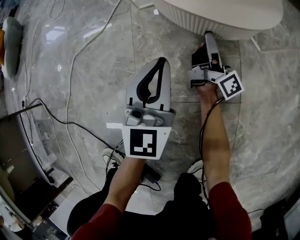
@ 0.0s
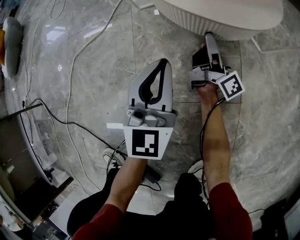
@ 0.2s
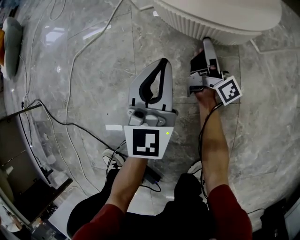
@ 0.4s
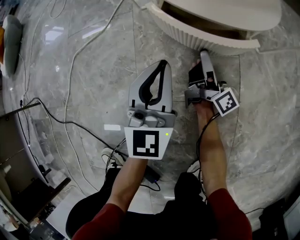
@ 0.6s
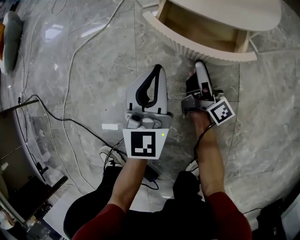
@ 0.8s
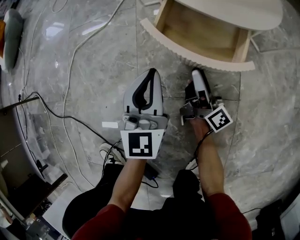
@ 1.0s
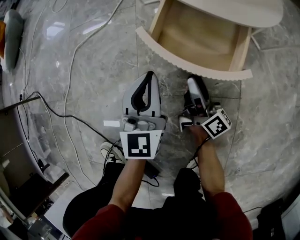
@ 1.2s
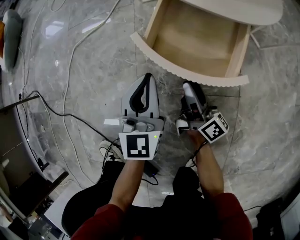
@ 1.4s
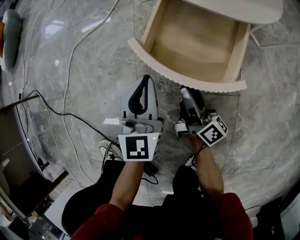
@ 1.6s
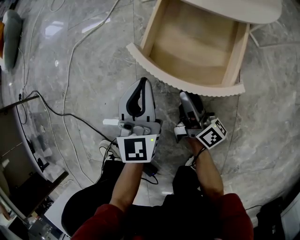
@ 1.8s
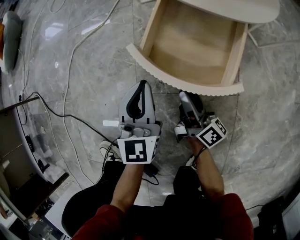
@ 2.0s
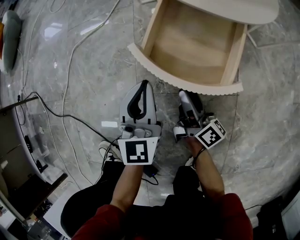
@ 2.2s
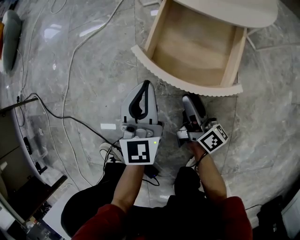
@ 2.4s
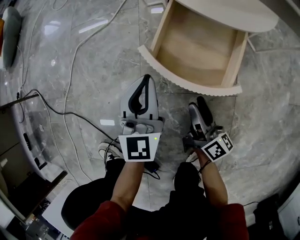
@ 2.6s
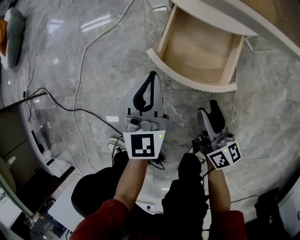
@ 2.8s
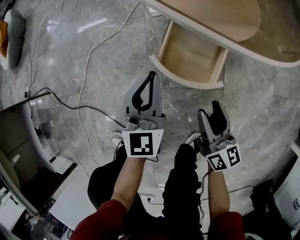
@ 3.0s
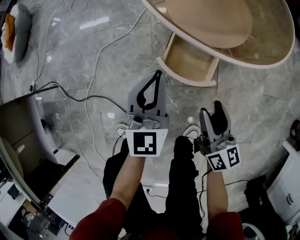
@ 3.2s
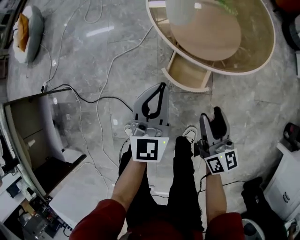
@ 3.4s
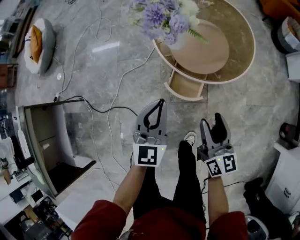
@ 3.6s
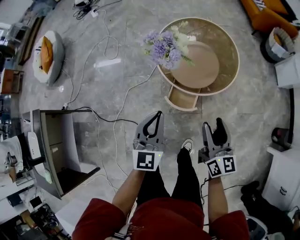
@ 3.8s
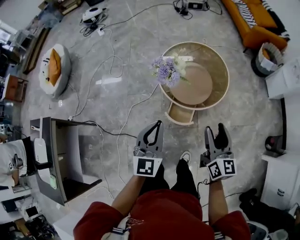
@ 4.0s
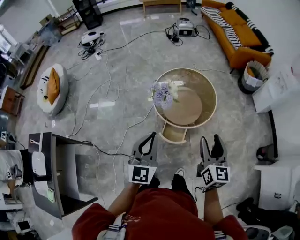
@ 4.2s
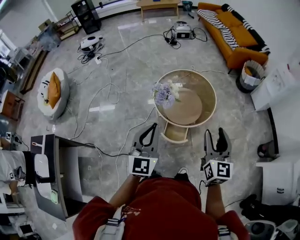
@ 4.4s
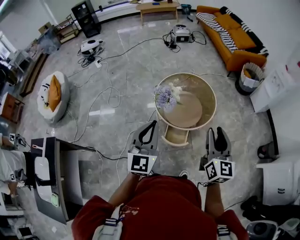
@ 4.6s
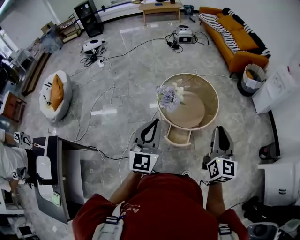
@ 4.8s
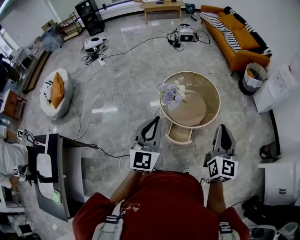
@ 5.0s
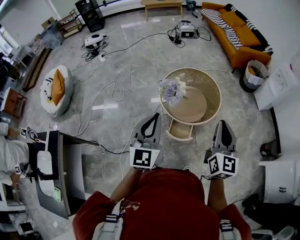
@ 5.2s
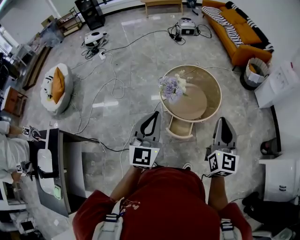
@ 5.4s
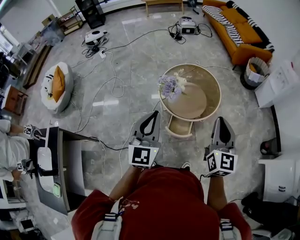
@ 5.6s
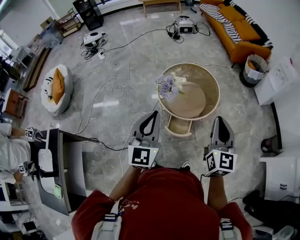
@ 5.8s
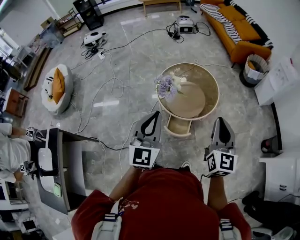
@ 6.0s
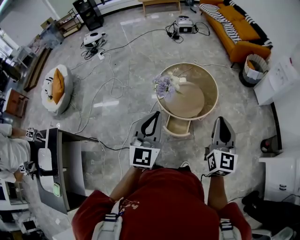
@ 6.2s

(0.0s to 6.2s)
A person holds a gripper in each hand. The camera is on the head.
0.0s - 1.6s: The left gripper is displaced backward and to the left by approximately 10 cm; the right gripper shifts about 20 cm backward and to the left.
1.6s - 3.2s: Both grippers move upward, about 30 cm. The right gripper changes its angle by about 40 degrees.
3.2s - 4.6s: The grippers both shift upward by roughly 60 cm. The right gripper changes its angle by about 30 degrees.
4.6s - 6.2s: The right gripper closes.

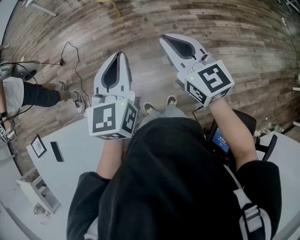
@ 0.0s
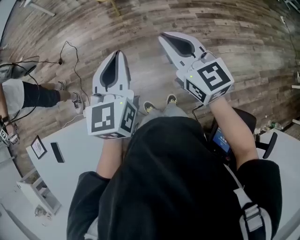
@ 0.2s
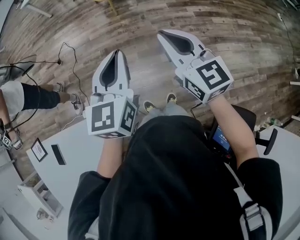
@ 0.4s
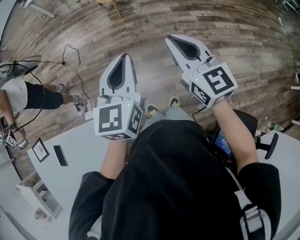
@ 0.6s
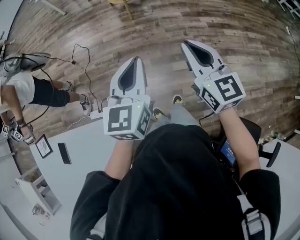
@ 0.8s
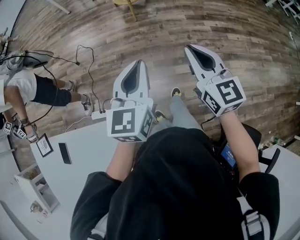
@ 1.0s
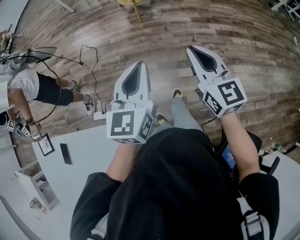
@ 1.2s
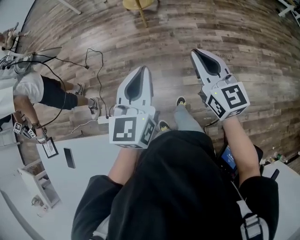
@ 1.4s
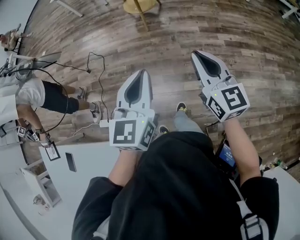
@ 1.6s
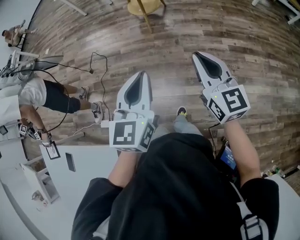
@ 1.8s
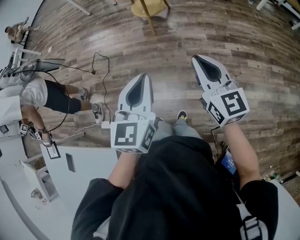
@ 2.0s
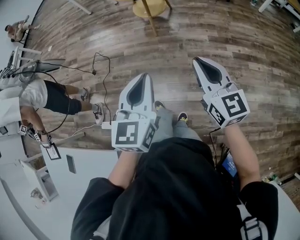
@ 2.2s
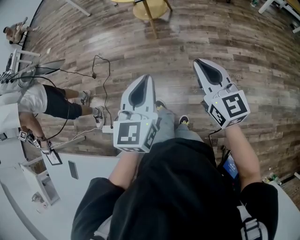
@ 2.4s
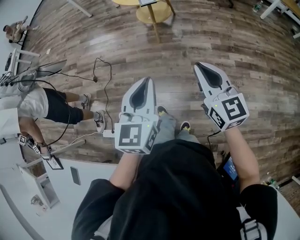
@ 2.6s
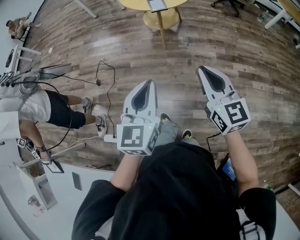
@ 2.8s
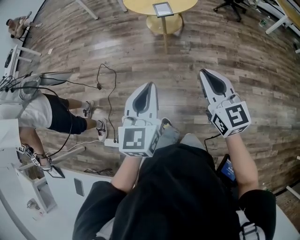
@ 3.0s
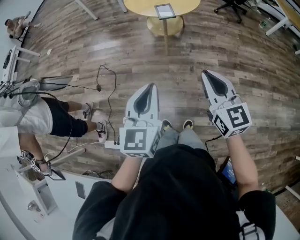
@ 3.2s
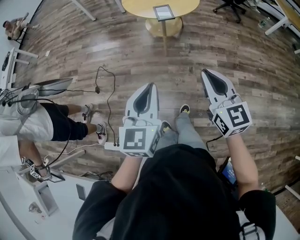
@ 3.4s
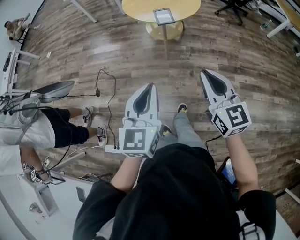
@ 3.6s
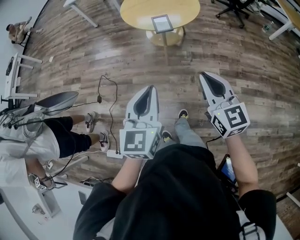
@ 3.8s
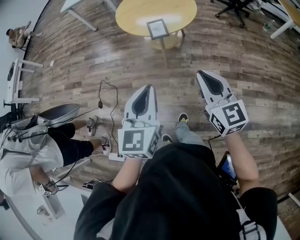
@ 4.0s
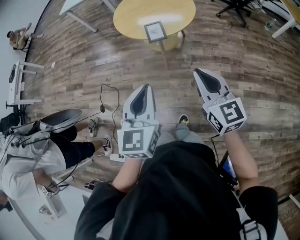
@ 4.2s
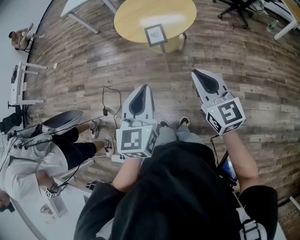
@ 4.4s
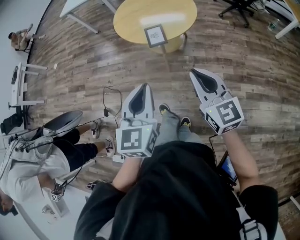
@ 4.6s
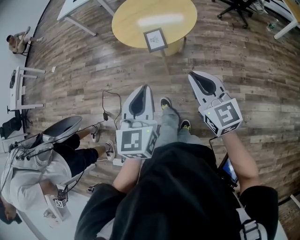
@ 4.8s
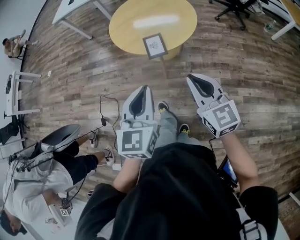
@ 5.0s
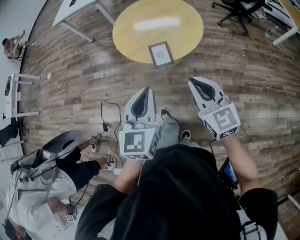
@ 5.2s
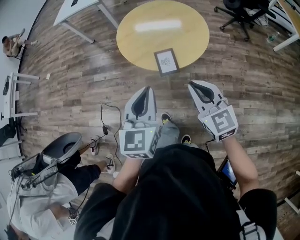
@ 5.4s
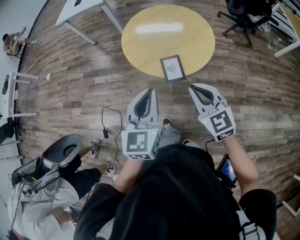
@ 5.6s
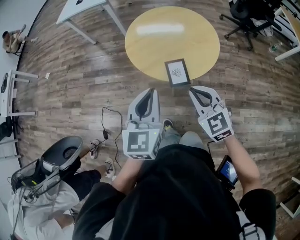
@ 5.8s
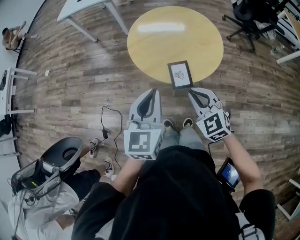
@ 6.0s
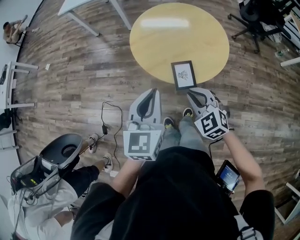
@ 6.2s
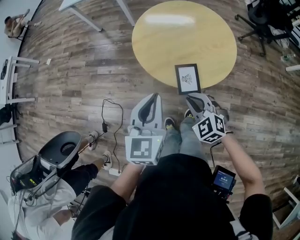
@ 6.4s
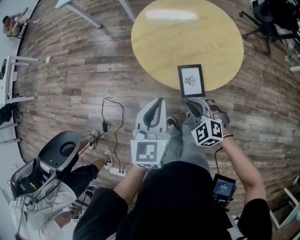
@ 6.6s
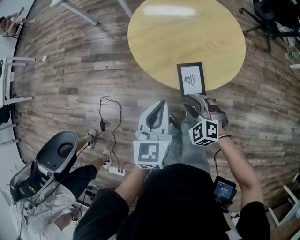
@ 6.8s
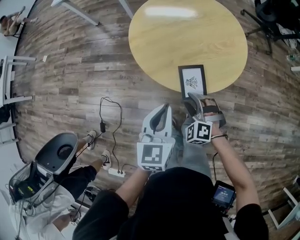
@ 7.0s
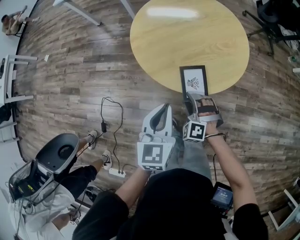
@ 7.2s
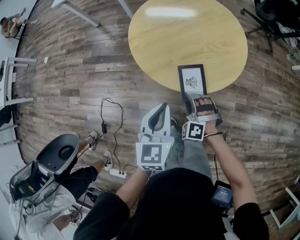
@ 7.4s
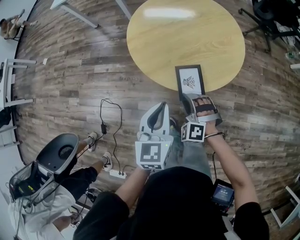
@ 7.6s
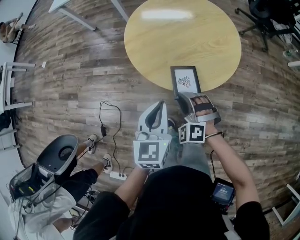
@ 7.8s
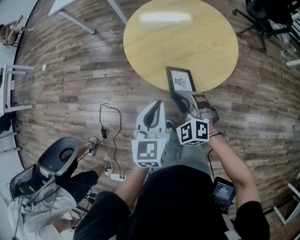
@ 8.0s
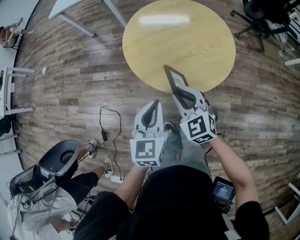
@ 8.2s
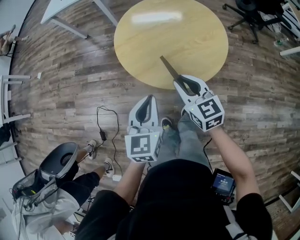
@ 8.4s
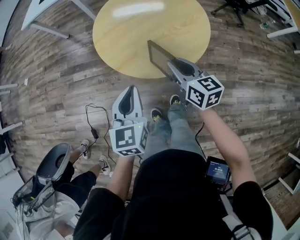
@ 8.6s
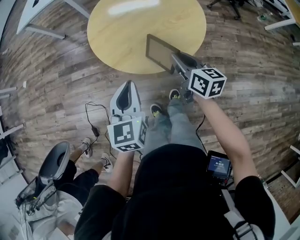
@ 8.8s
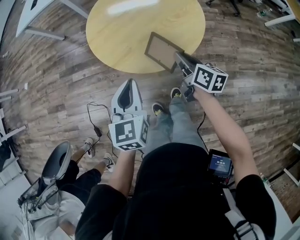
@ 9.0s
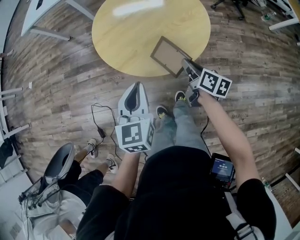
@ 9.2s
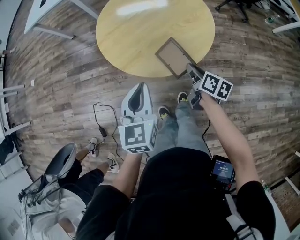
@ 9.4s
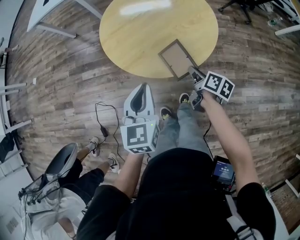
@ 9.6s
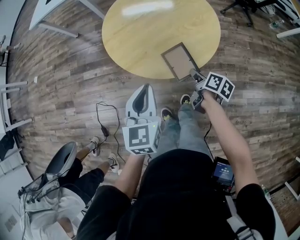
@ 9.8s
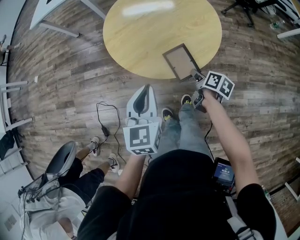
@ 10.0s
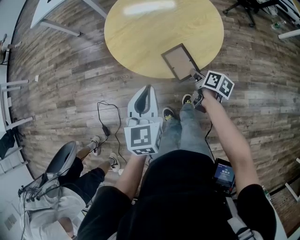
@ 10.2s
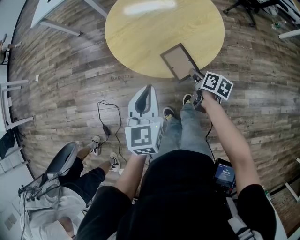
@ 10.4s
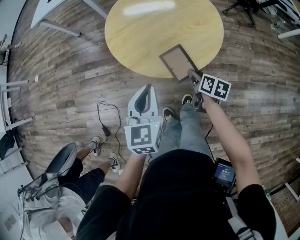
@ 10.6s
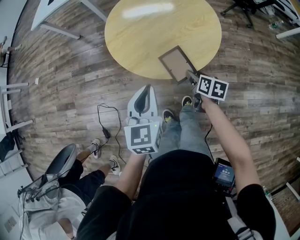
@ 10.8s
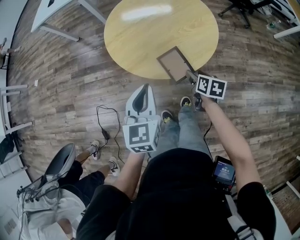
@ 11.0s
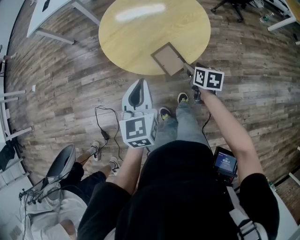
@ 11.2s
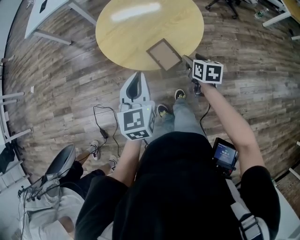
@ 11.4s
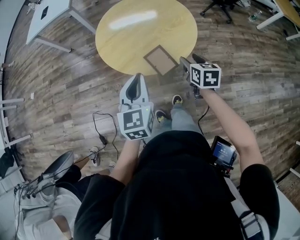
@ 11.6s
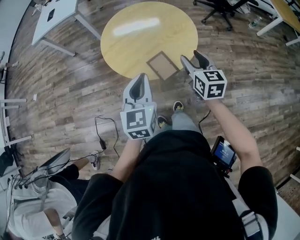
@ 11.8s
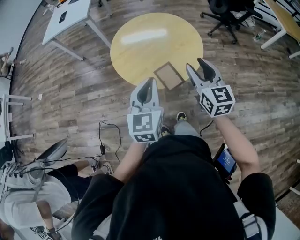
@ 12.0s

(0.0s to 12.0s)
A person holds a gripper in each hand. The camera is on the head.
0.0s - 1.6s: Both grippers move forward, approximately 15 cm.
1.6s - 3.0s: The left gripper moves forward and to the left, some 30 cm, while the right gripper goes some 25 cm forward.
3.0s - 4.4s: Both grippers travel together forward and to the right, approximately 25 cm.
4.4s - 6.0s: The left gripper is displaced forward by about 30 cm. Meanwhile the right gripper is displaced forward and to the left by about 30 cm, and turns by roughly 40 degrees.
6.0s - 7.6s: The grippers both shift downward by some 20 cm. The right gripper changes its angle by approximately 40 degrees, and opens its fingers.
7.6s - 9.0s: The right gripper is displaced to the right, upward and forward by roughly 20 cm, and rolls clockwise, seen from behind, by some 110 degrees.
9.0s - 10.4s: The right gripper travels downward by approximately 10 cm, and rotates some 20 degrees.
10.4s - 12.0s: The left gripper heads upward, covering approximately 10 cm, while the right gripper is displaced upward by some 30 cm, and rotates around the line of its fingers by approximately 50 degrees, counterclockwise from behind.

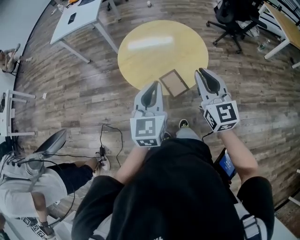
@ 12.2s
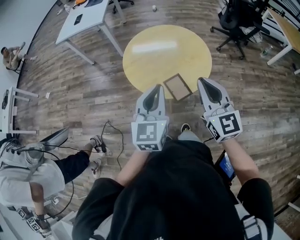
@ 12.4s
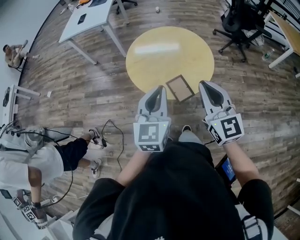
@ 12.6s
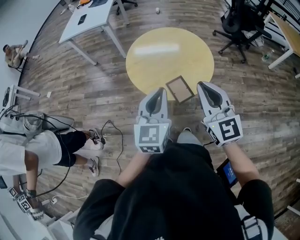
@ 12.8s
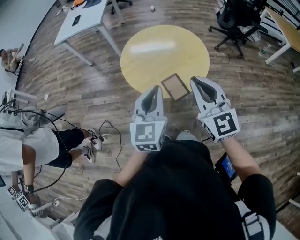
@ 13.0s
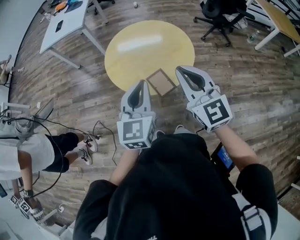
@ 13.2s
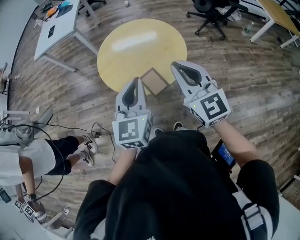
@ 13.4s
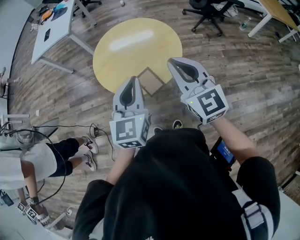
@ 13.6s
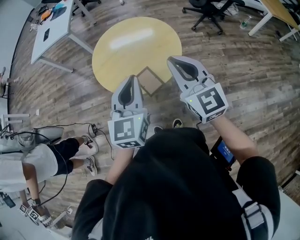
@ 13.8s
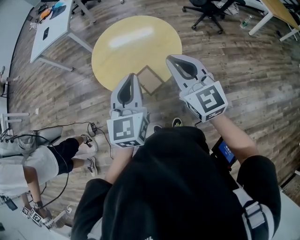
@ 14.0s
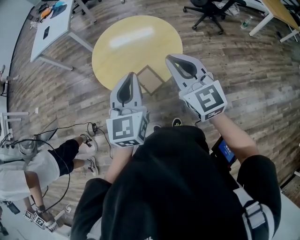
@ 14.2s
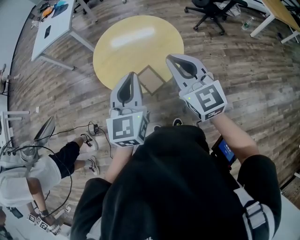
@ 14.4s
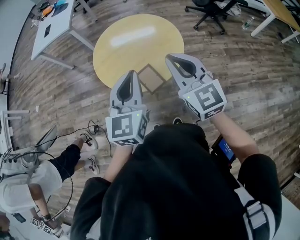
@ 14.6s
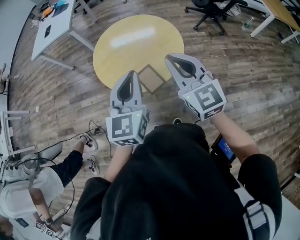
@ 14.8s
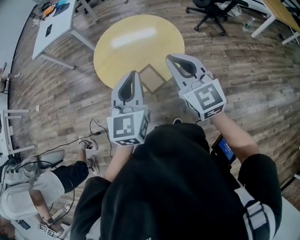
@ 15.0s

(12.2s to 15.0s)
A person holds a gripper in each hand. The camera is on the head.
12.2s - 13.6s: The left gripper travels to the right by approximately 5 cm. The right gripper ends up roughly 5 cm from where it was.
13.6s - 15.0s: The grippers make only small movements.

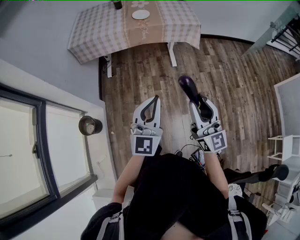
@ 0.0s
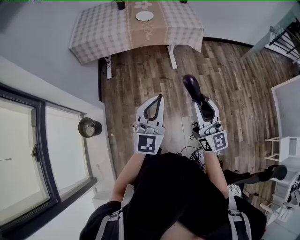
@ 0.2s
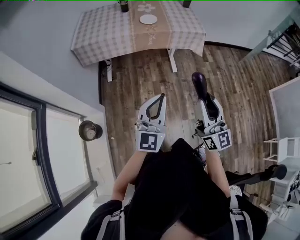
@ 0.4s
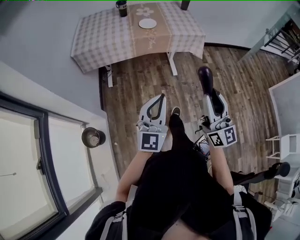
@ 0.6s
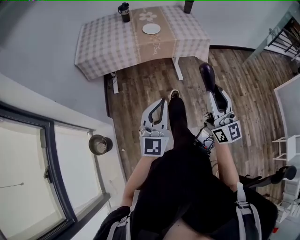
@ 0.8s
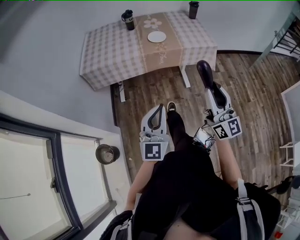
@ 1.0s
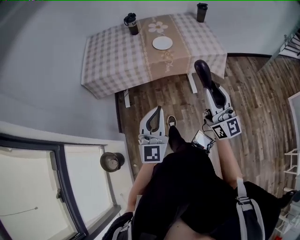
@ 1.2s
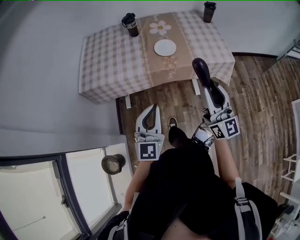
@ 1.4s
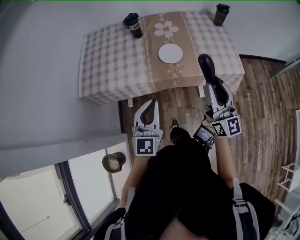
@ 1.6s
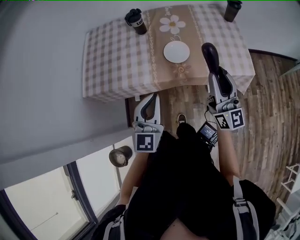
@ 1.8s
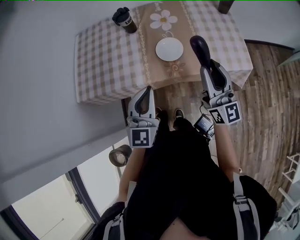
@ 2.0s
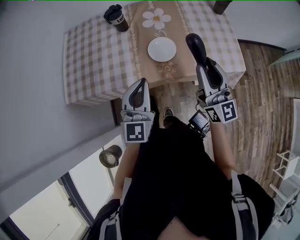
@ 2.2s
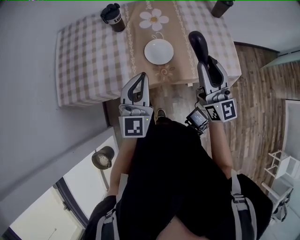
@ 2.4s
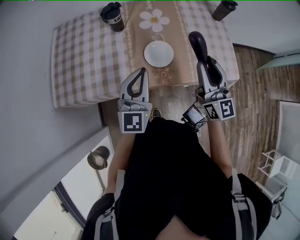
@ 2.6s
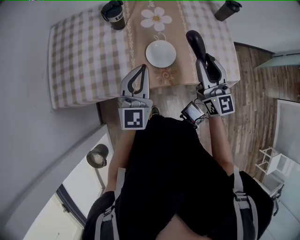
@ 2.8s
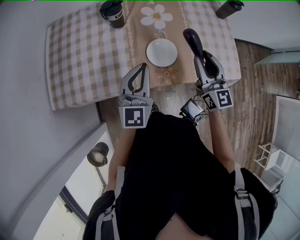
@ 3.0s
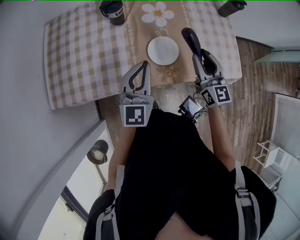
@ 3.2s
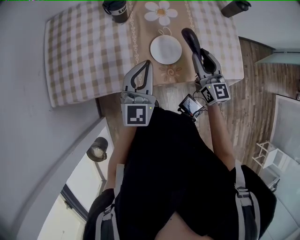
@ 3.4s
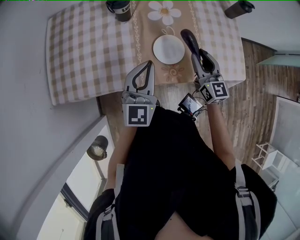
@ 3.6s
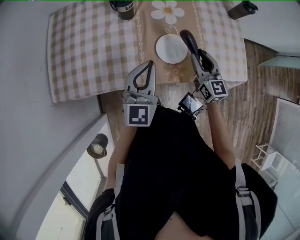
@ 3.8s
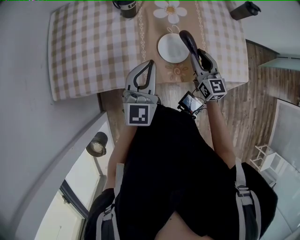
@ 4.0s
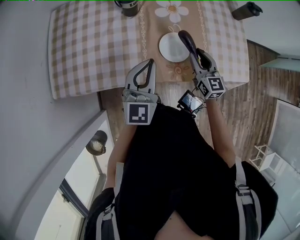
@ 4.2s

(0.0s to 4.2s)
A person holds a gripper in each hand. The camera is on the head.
0.0s - 1.4s: The left gripper shifts about 20 cm forward, to the left and downward. Meanwhile the right gripper travels forward by some 20 cm.
1.4s - 2.8s: The two grippers go approximately 25 cm forward.
2.8s - 4.2s: The right gripper is displaced downward by some 15 cm, and swivels approximately 20 degrees; the left gripper ends up roughly 5 cm from where it was.
